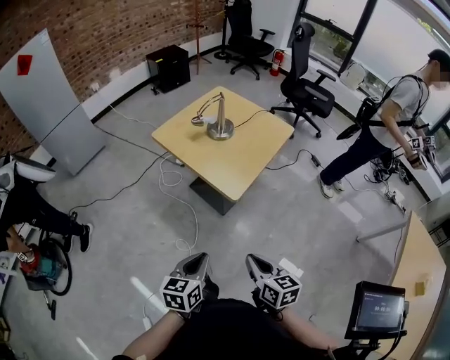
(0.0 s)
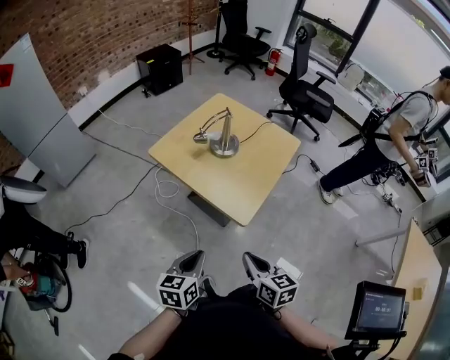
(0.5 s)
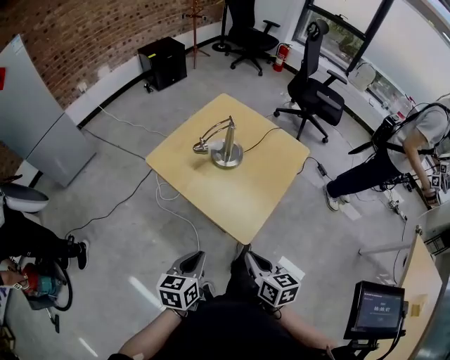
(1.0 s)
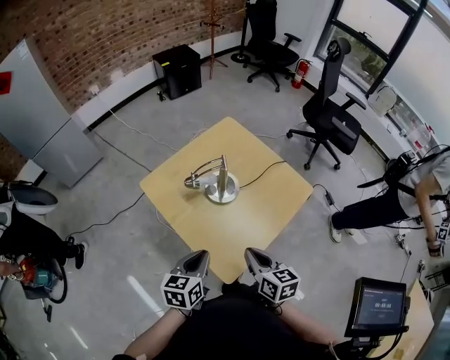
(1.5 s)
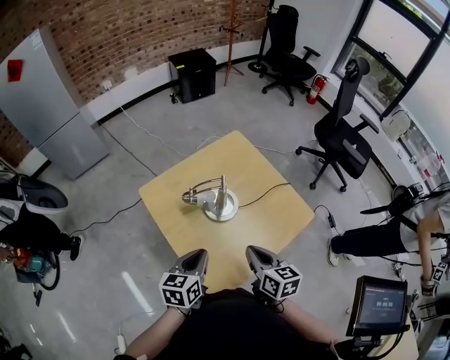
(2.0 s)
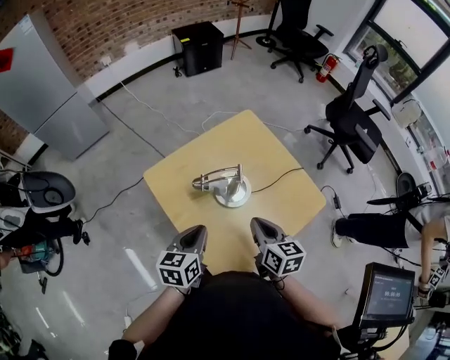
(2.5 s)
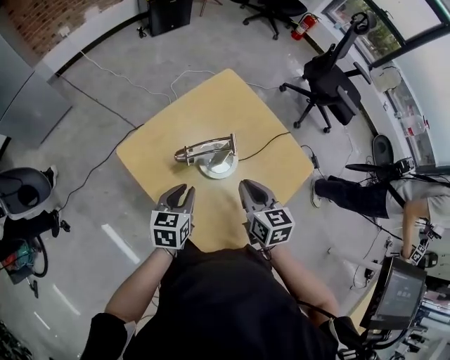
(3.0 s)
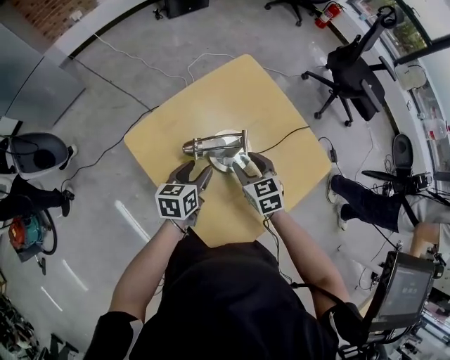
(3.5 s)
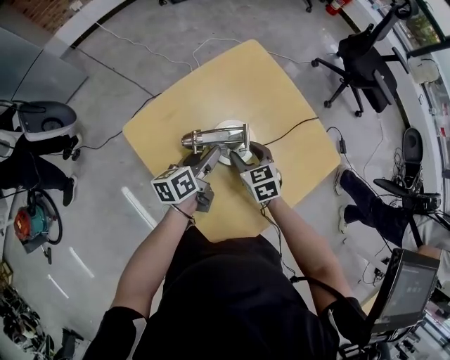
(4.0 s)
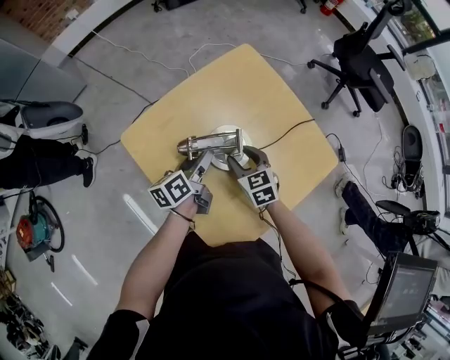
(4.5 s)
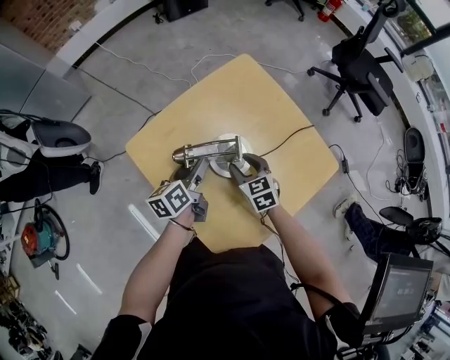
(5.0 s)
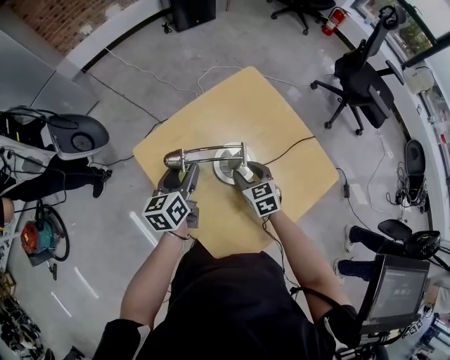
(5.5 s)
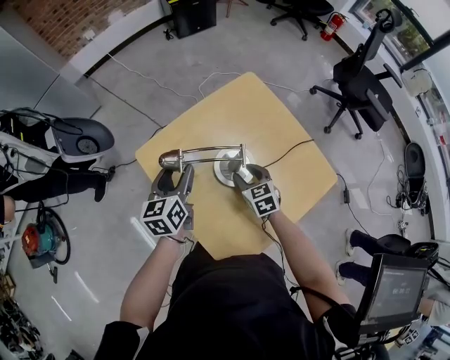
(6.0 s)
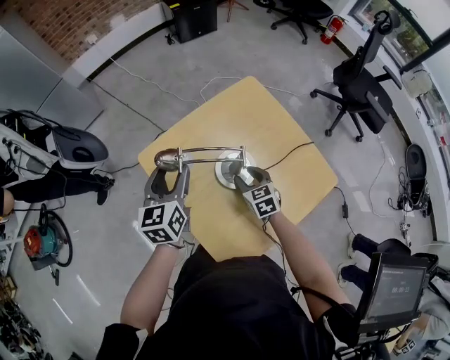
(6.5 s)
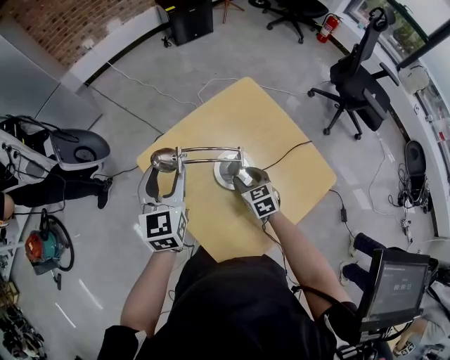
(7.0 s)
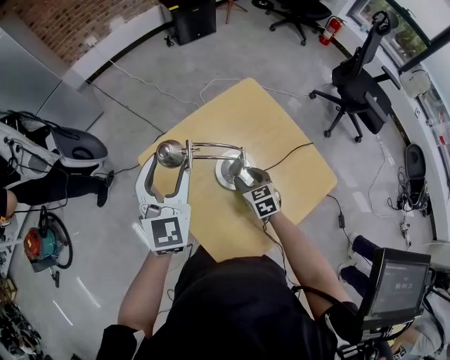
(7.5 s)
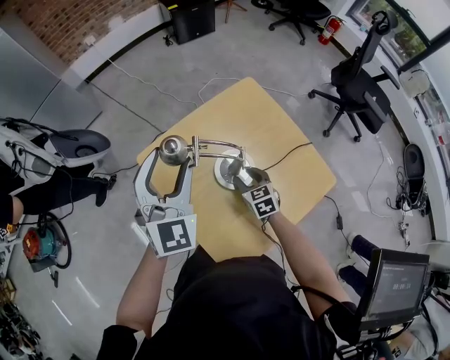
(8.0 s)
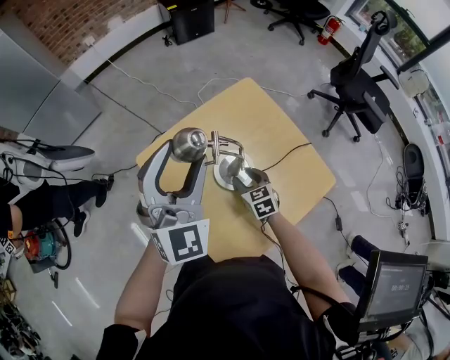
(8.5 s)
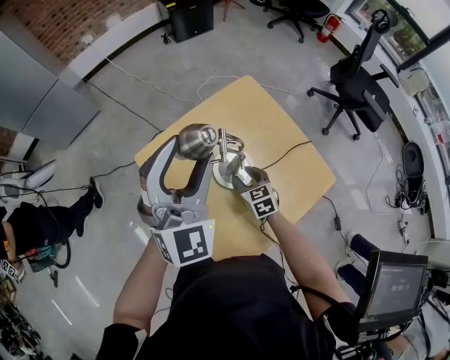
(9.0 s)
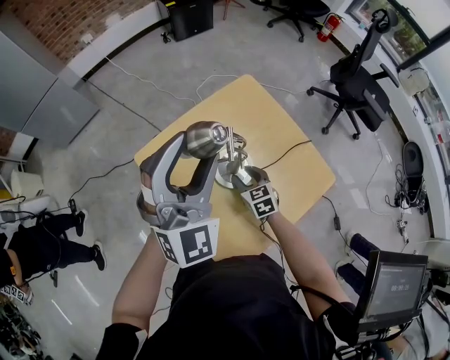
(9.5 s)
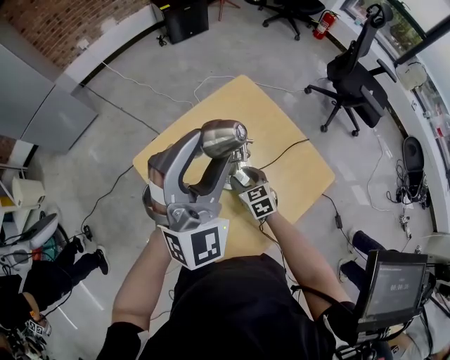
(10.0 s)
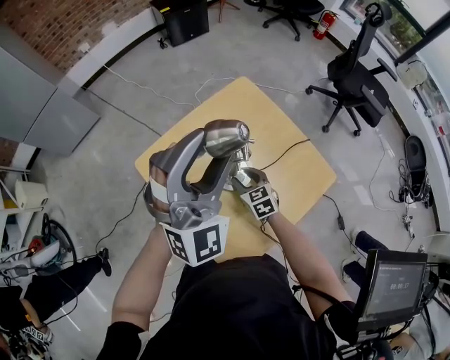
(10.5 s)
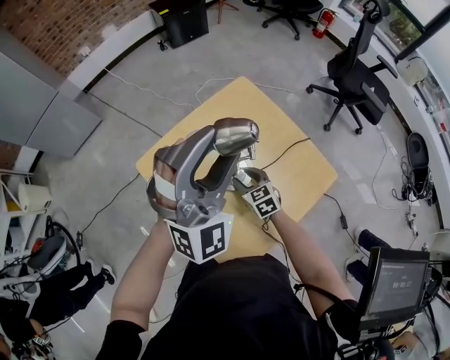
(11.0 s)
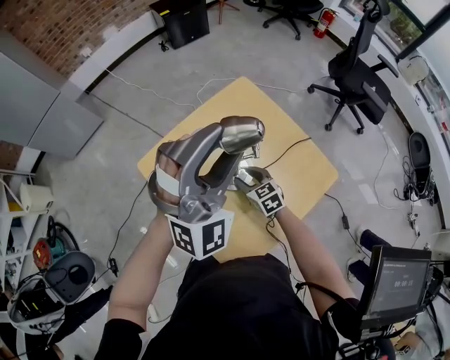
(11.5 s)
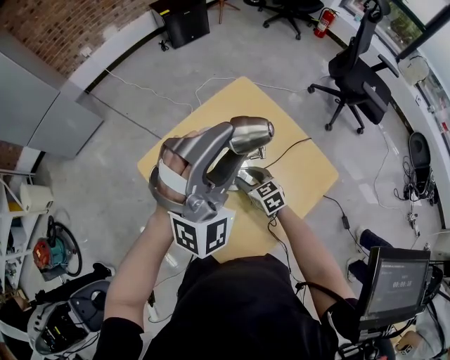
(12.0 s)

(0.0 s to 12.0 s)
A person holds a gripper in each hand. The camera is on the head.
0.0 s - 2.0 s: Both grippers are carried forward, roughly 50 cm.
2.0 s - 4.0 s: The right gripper moves forward, downward and to the left, roughly 25 cm, changes its angle by about 30 degrees, and opens its fingers, while the left gripper shifts some 25 cm forward and downward, turns by roughly 30 degrees, and opens.
4.0 s - 6.0 s: The left gripper heads upward and to the left, covering about 15 cm, and changes its angle by some 30 degrees.
6.0 s - 8.0 s: The left gripper travels upward by about 15 cm, and rolls clockwise, seen from behind, by about 50 degrees.
8.0 s - 10.0 s: The left gripper travels to the right and upward by roughly 15 cm, and changes its angle by some 30 degrees.
10.0 s - 12.0 s: The grippers make only small movements.

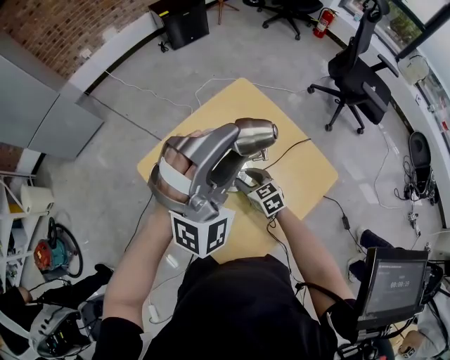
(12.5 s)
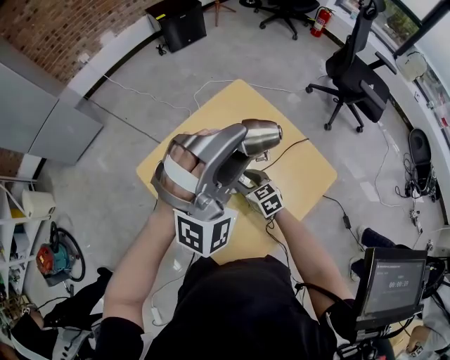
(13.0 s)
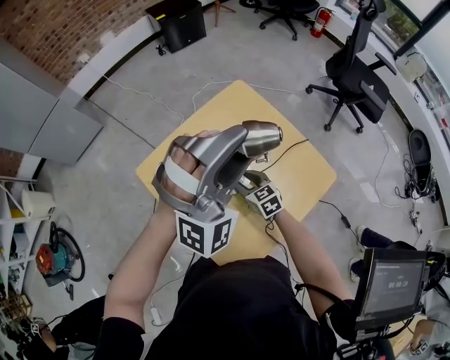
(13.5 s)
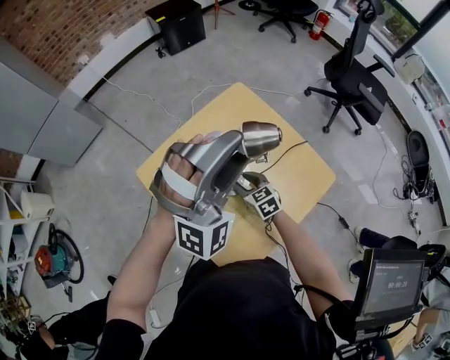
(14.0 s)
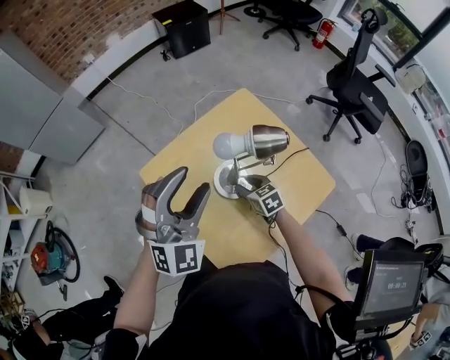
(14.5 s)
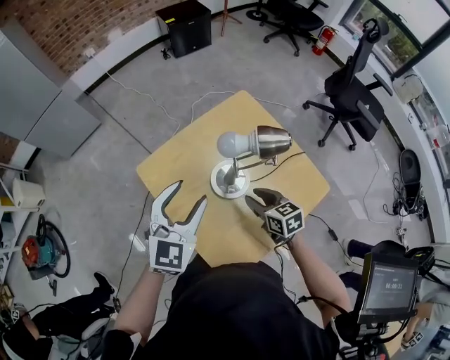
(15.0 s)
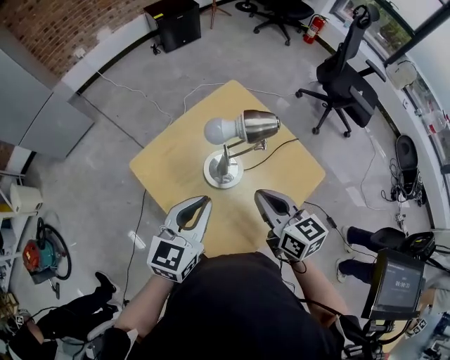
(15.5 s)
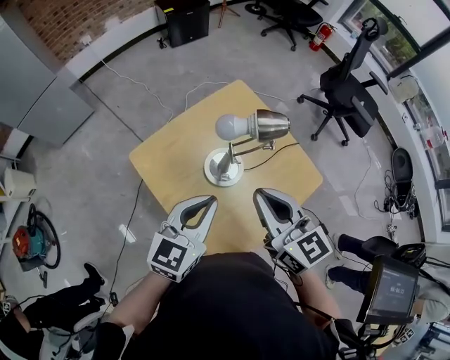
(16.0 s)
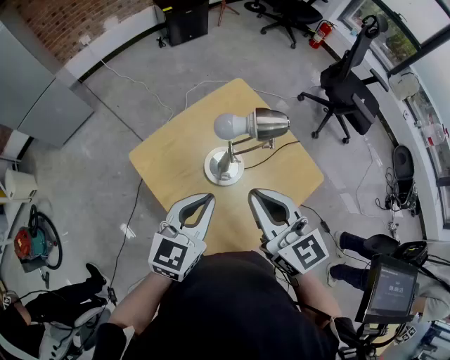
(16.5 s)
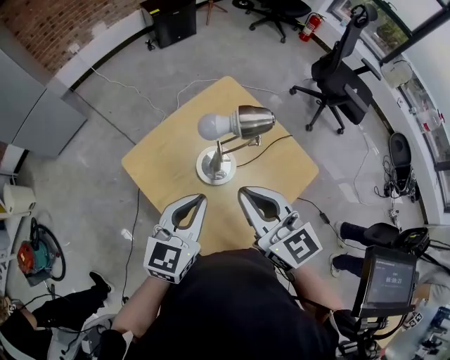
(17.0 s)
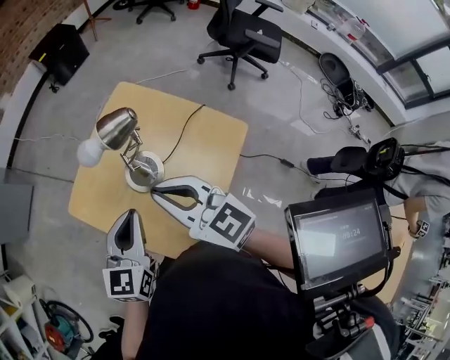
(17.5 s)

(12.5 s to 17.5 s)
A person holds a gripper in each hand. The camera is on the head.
12.5 s - 15.0 s: The left gripper travels downward and to the left by about 15 cm, and rolls counterclockwise, seen from behind, by about 60 degrees. The right gripper heads upward, covering roughly 5 cm.
15.0 s - 17.5 s: The right gripper is displaced upward by approximately 20 cm, rotates about 30 degrees, and closes its fingers. Meanwhile the left gripper travels to the right by approximately 5 cm, swivels approximately 20 degrees, and closes up.

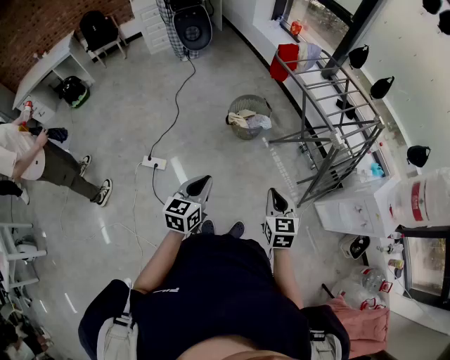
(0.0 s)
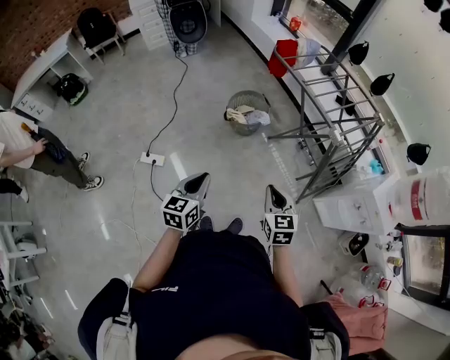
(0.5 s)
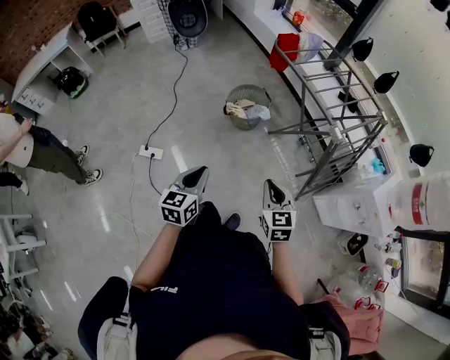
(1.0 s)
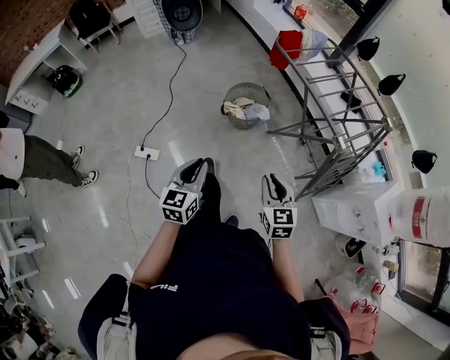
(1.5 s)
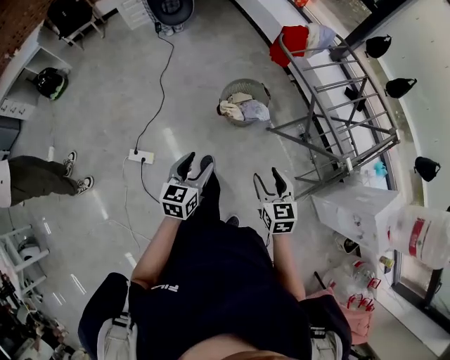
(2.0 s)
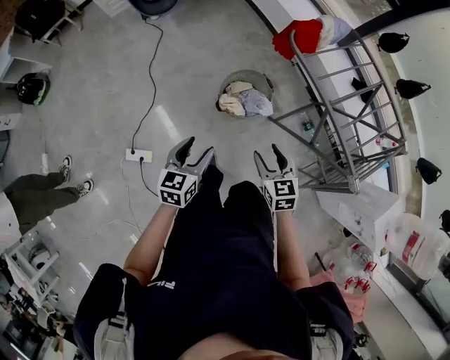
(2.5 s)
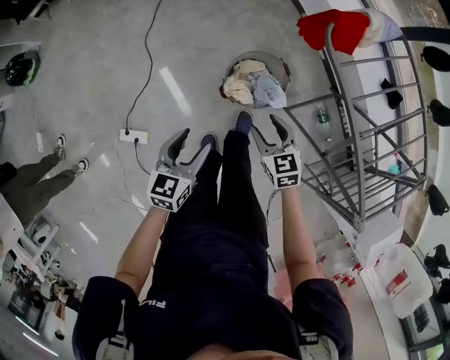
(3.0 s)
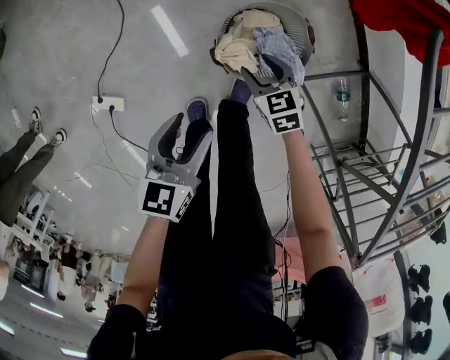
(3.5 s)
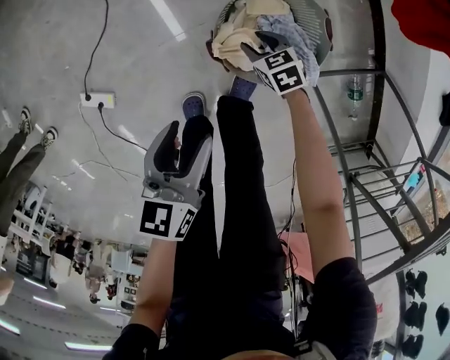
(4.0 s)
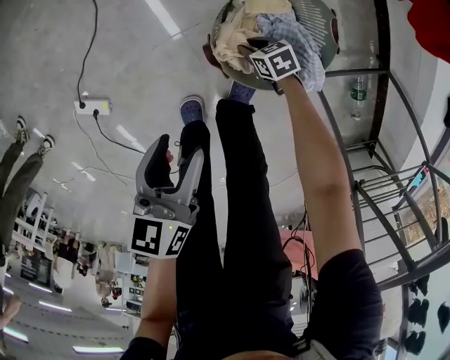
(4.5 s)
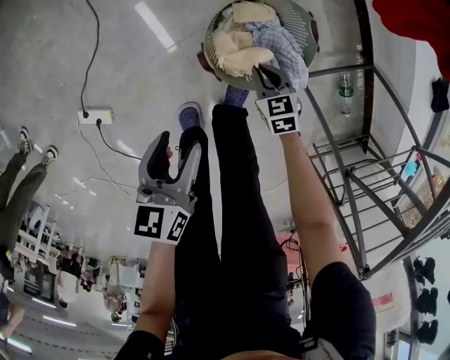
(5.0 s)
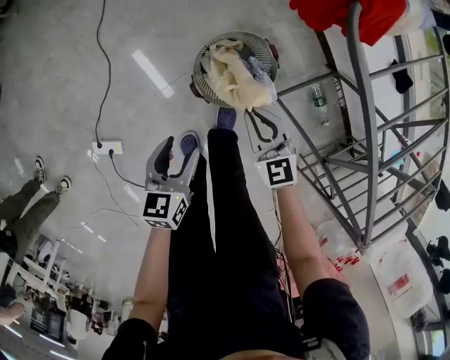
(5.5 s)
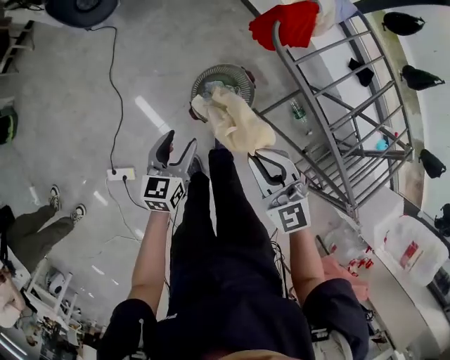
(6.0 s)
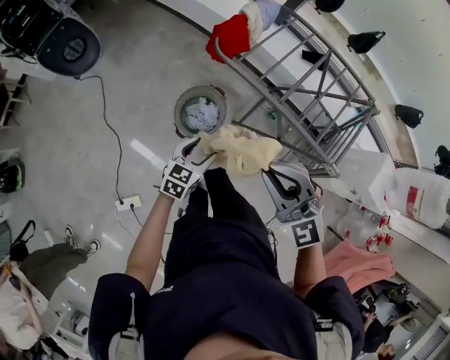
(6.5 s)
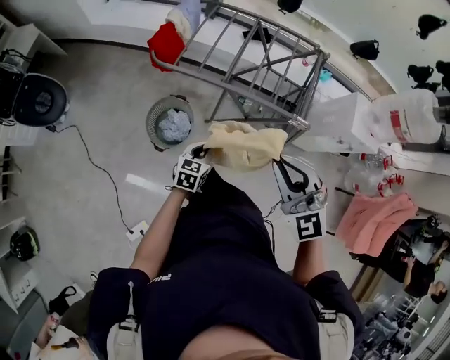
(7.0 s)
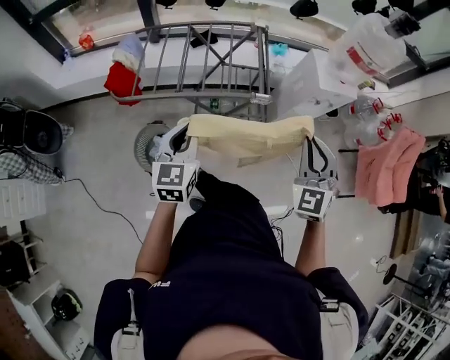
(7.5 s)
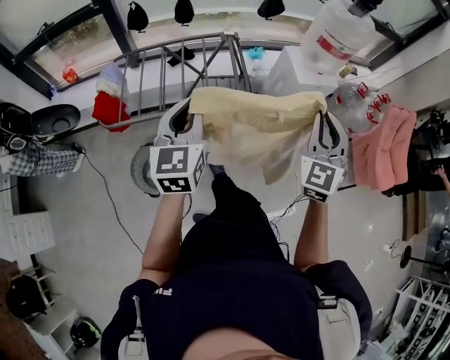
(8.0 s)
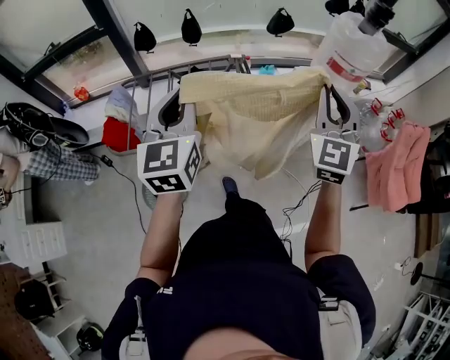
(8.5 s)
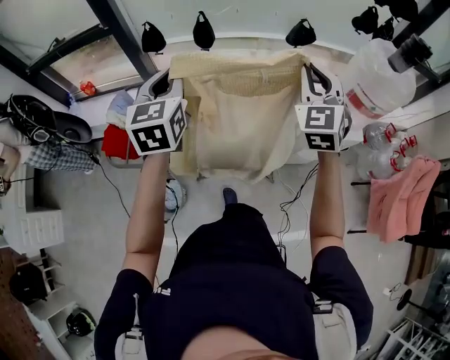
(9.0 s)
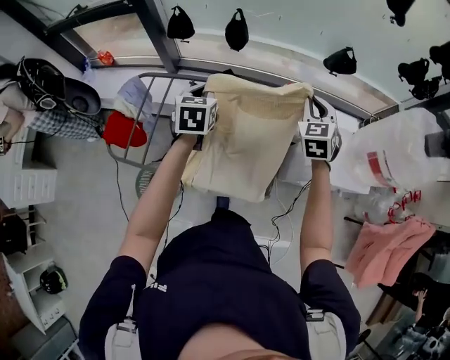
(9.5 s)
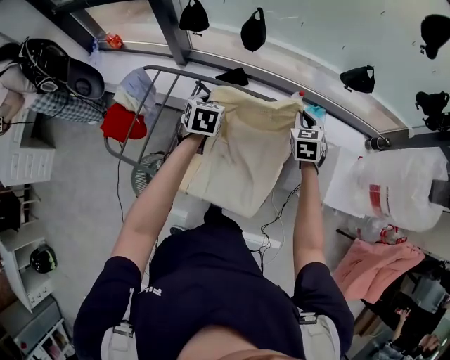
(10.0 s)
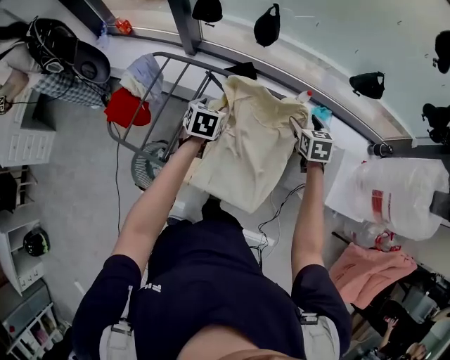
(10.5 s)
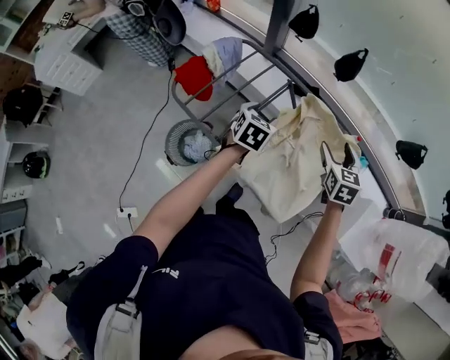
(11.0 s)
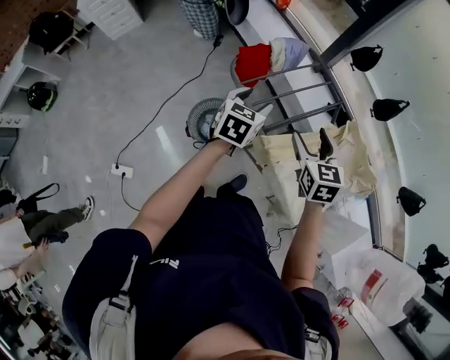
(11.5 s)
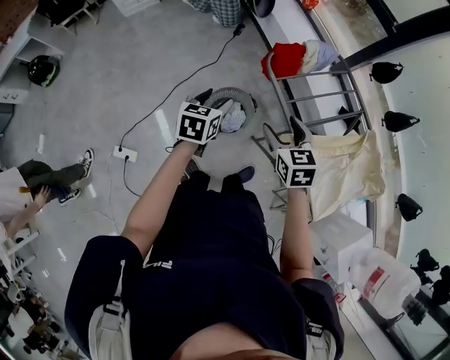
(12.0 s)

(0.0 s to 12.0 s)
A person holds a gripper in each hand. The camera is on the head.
0.0 s - 2.0 s: The two grippers go roughly 25 cm forward. The left gripper opens its fingers. The right gripper opens.
2.0 s - 4.0 s: The left gripper goes some 35 cm downward, and turns by some 20 degrees. The right gripper moves downward, about 60 cm, and turns by roughly 40 degrees.
4.0 s - 6.0 s: The left gripper heads upward, covering approximately 20 cm, and rotates roughly 20 degrees. Meanwhile the right gripper goes some 60 cm upward, tips its fingers upward by roughly 30 degrees, and closes up.
6.0 s - 8.0 s: The two grippers travel together, about 50 cm. The left gripper heads upward, covering approximately 40 cm, turns by about 60 degrees, and closes; the right gripper changes its angle by about 110 degrees.
8.0 s - 10.0 s: Both grippers are carried about 50 cm. The left gripper tilts its fingers about 40 degrees downward. The right gripper tilts its fingers some 30 degrees downward.
10.0 s - 12.0 s: The two grippers travel together, approximately 60 cm. The left gripper swivels some 50 degrees, and opens up, while the right gripper swivels roughly 60 degrees, and opens up.
